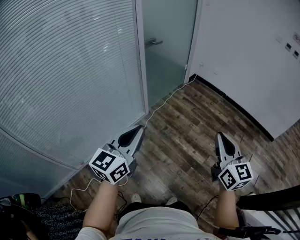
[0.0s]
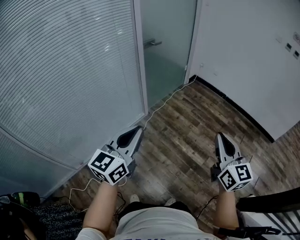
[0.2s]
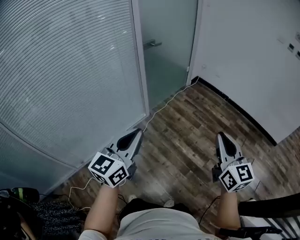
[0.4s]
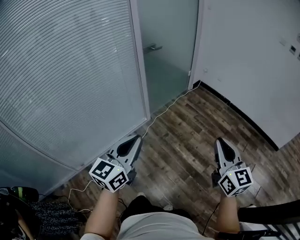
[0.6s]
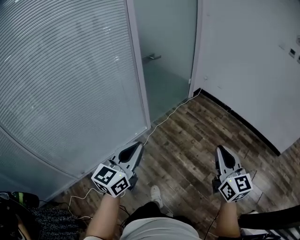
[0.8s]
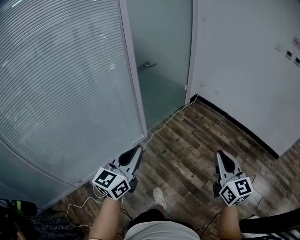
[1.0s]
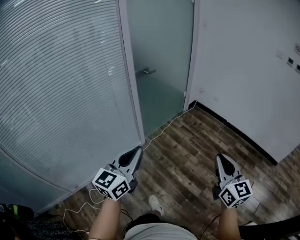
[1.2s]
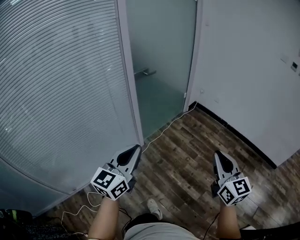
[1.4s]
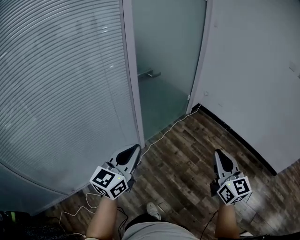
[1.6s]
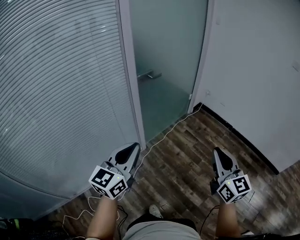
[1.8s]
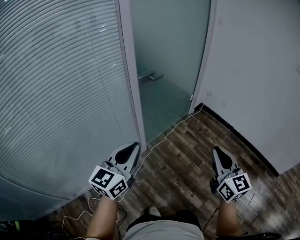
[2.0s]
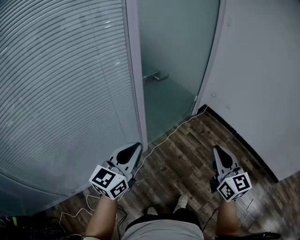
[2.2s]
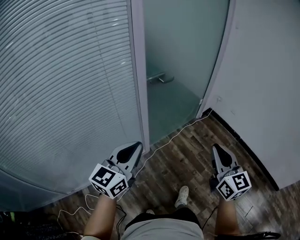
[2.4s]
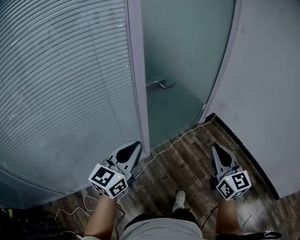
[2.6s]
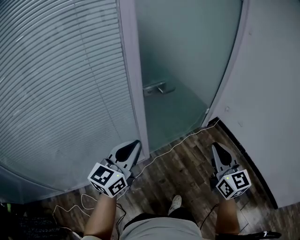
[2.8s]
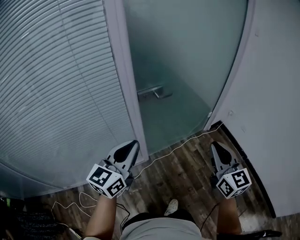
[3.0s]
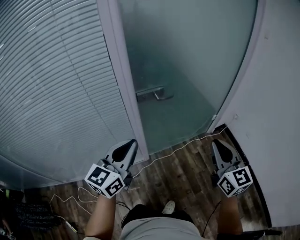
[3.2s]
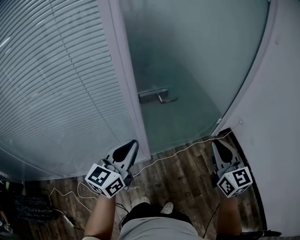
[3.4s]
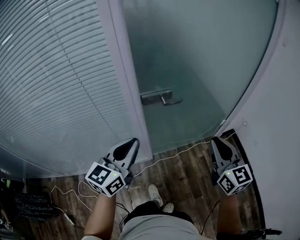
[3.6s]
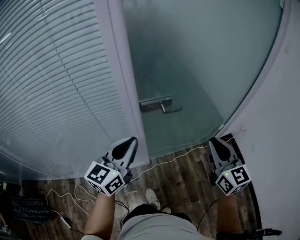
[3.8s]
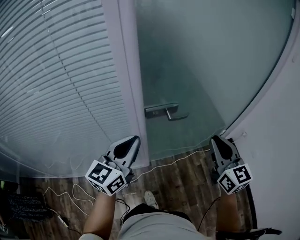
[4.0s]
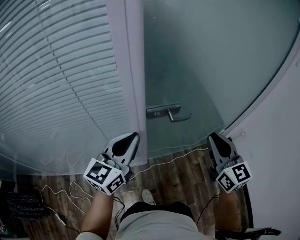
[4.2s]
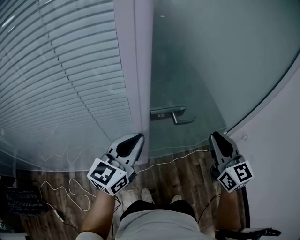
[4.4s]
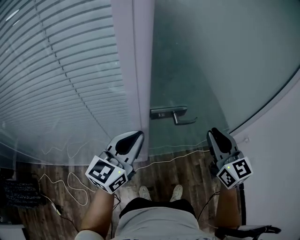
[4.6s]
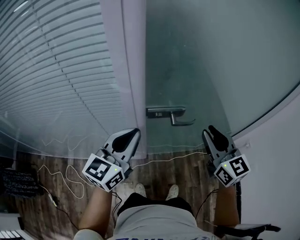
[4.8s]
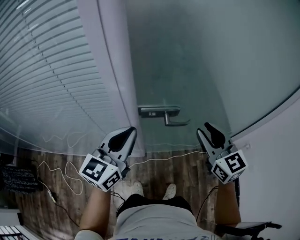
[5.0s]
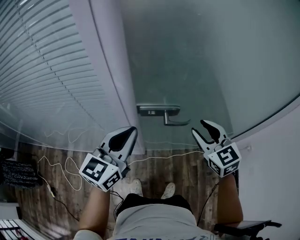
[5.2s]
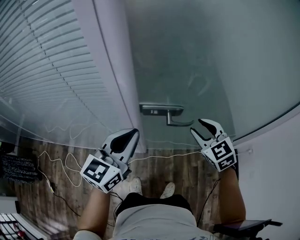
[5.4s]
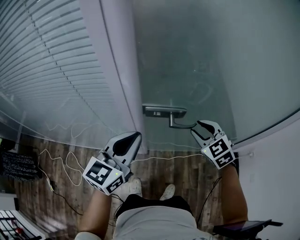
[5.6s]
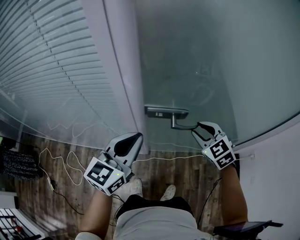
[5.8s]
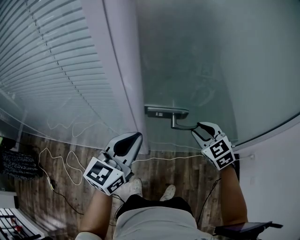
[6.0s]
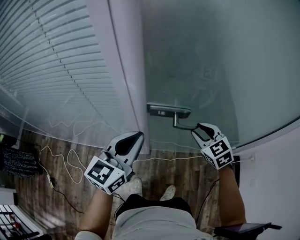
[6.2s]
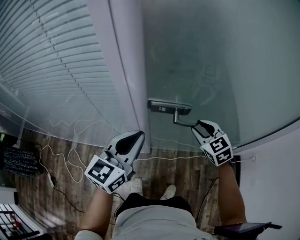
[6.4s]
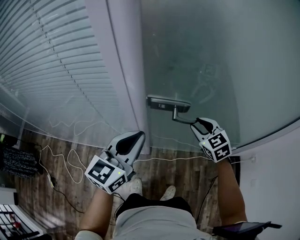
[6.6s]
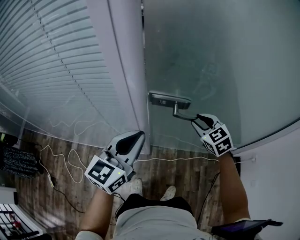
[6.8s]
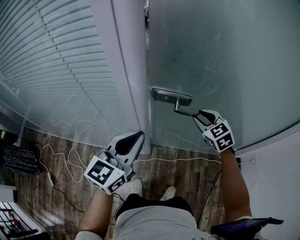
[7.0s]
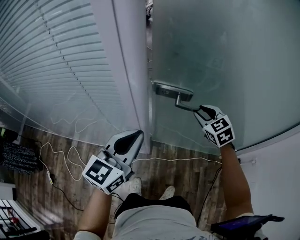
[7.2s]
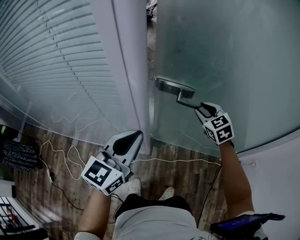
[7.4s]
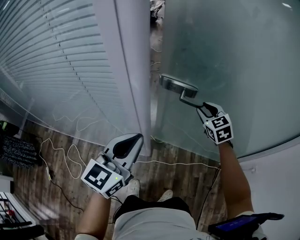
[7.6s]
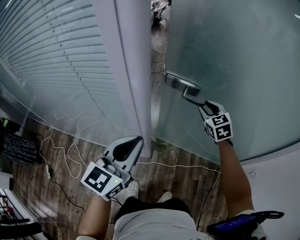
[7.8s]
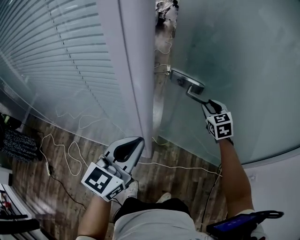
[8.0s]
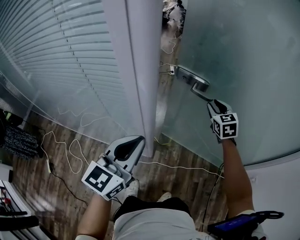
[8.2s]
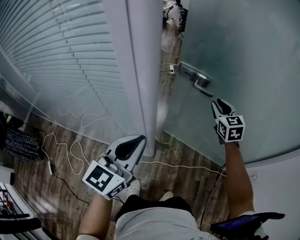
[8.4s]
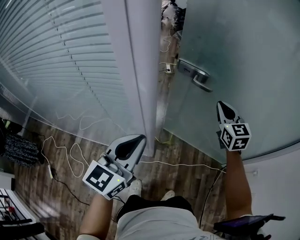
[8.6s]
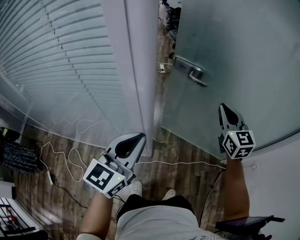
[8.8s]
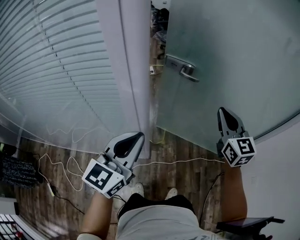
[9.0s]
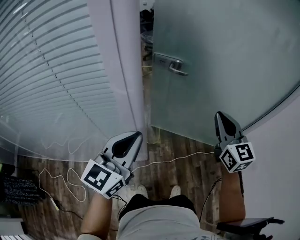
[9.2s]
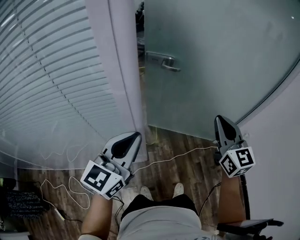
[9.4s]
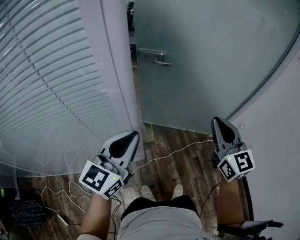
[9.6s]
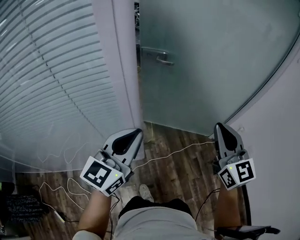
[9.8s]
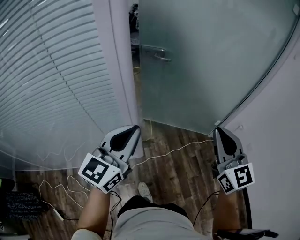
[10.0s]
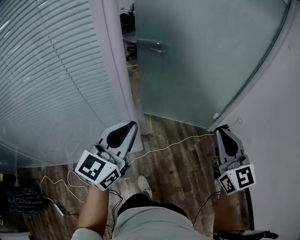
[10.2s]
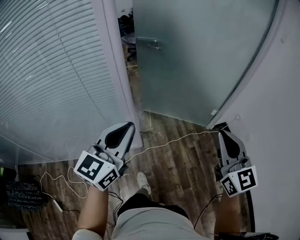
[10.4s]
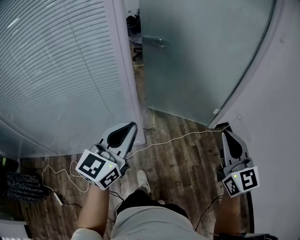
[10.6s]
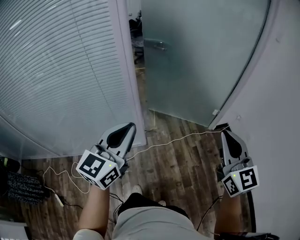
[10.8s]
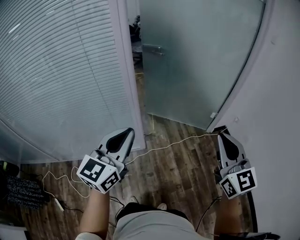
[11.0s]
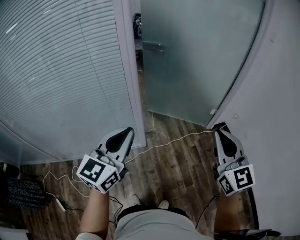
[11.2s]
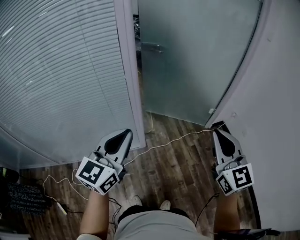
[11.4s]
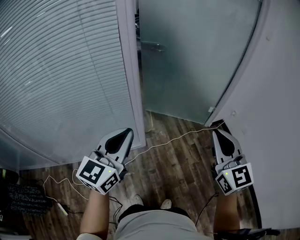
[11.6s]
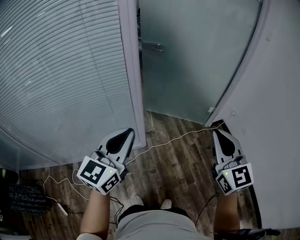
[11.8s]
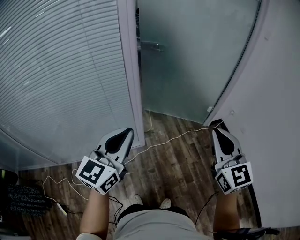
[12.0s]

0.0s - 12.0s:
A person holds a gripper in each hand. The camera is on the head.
0.0s - 1.6s: The two grippers go roughly 25 cm forward.
1.6s - 3.0s: The two grippers go approximately 35 cm forward.
3.0s - 4.4s: The two grippers go roughly 25 cm forward.
4.4s - 6.0s: The right gripper shifts approximately 20 cm downward and forward, tips its fingers downward by about 30 degrees, and opens. Meanwhile the left gripper ends up approximately 5 cm from where it was.
6.0s - 7.6s: The right gripper is displaced forward by some 15 cm.
7.6s - 9.0s: The right gripper is displaced upward, backward and to the right by some 15 cm, changes its angle by some 30 degrees, and closes its fingers.
9.0s - 10.4s: The left gripper travels backward and to the right by approximately 15 cm, while the right gripper heads backward, covering about 30 cm.
10.4s - 12.0s: The grippers both shift backward and to the left by about 15 cm.

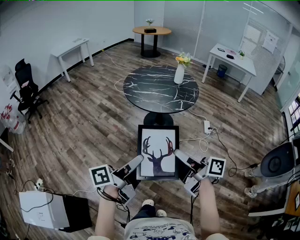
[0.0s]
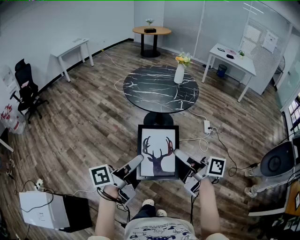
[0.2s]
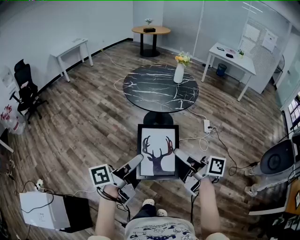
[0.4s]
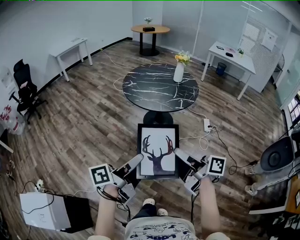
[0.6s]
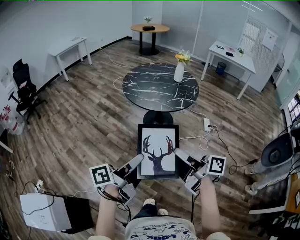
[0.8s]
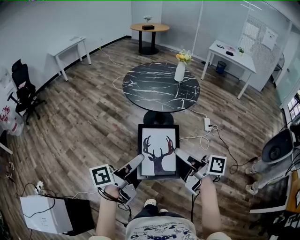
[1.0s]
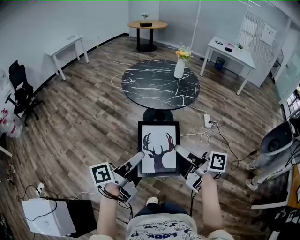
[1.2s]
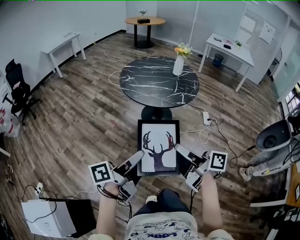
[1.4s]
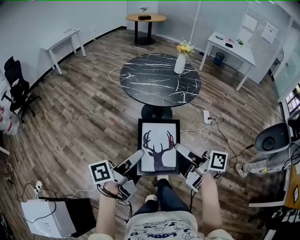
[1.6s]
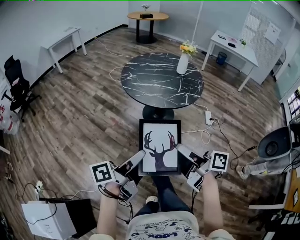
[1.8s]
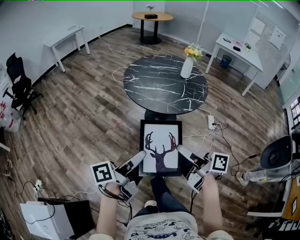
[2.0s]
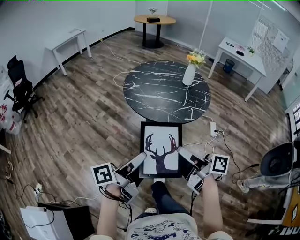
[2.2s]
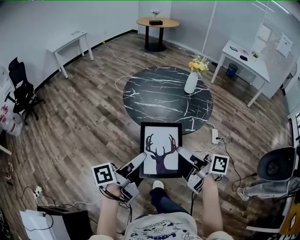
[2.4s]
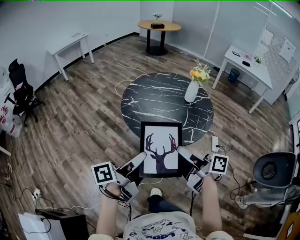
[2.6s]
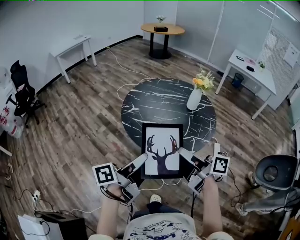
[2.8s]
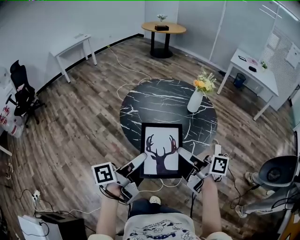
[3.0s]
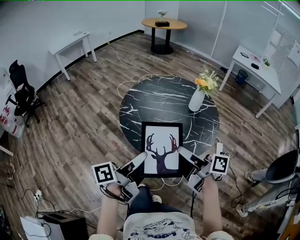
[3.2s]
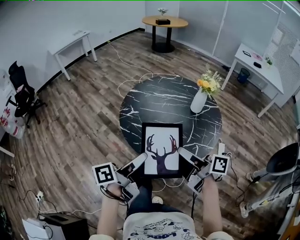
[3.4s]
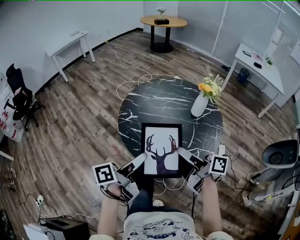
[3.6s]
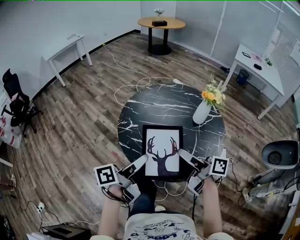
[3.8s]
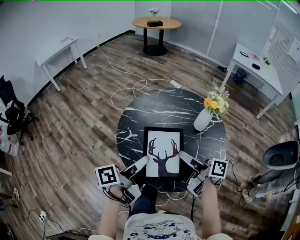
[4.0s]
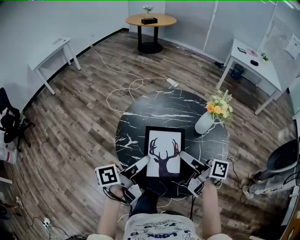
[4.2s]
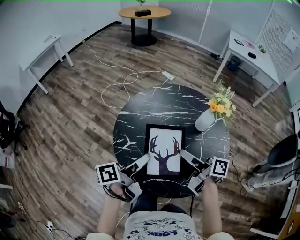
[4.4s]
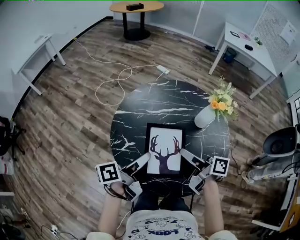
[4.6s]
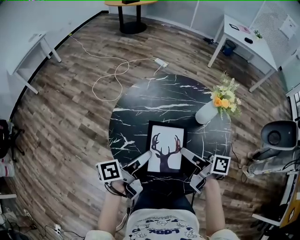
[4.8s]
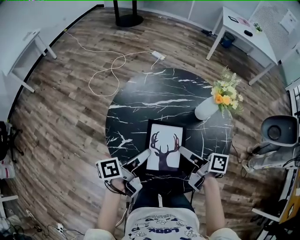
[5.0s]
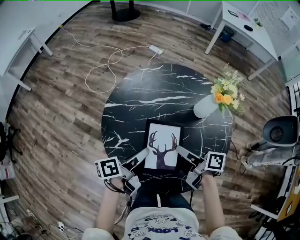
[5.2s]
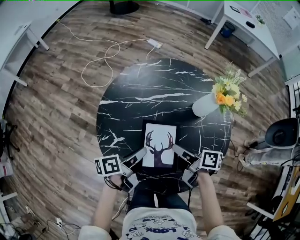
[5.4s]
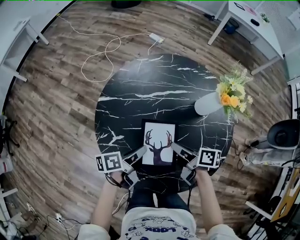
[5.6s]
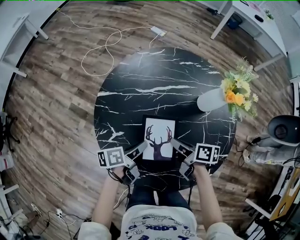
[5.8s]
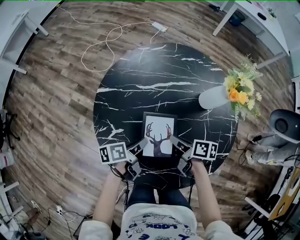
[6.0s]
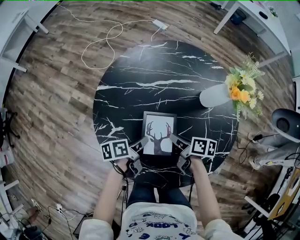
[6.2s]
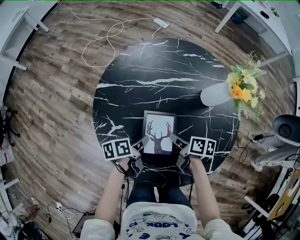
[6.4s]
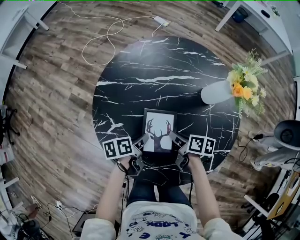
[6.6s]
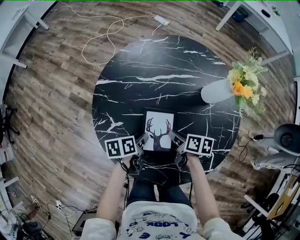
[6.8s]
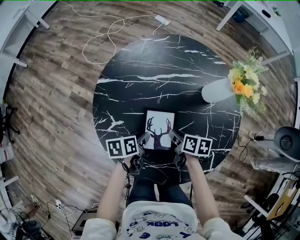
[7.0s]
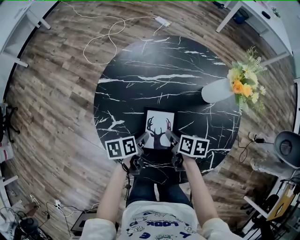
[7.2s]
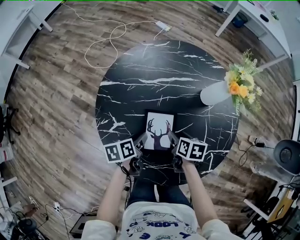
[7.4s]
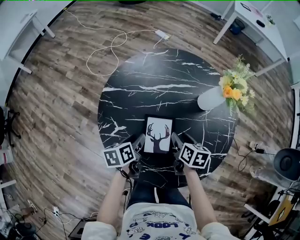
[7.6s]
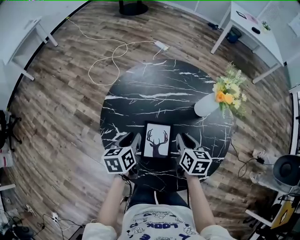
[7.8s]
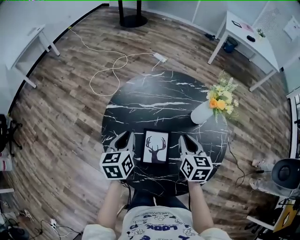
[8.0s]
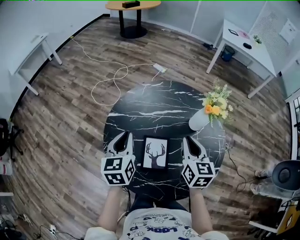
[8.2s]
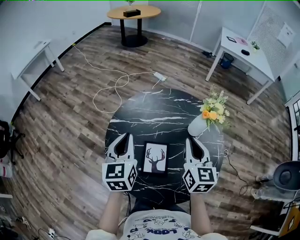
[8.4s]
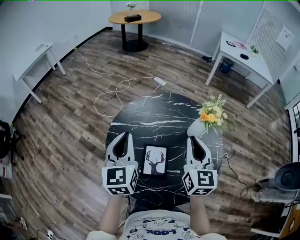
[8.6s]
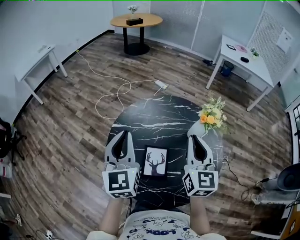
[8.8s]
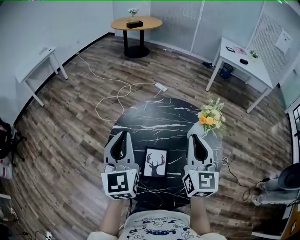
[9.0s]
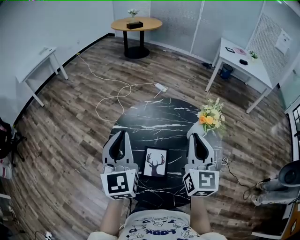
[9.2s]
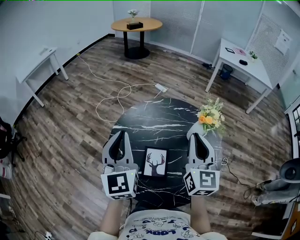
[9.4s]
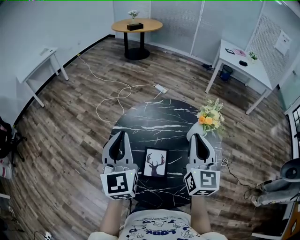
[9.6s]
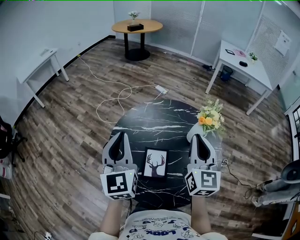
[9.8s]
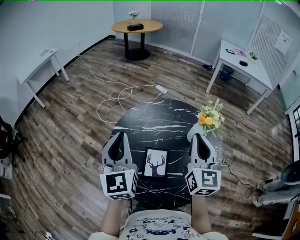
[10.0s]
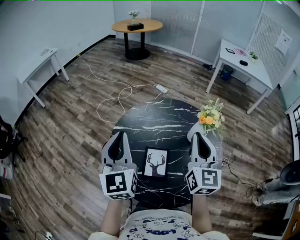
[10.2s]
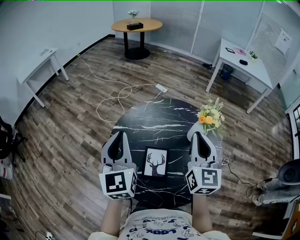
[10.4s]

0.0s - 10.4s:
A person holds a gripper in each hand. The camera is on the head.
0.0s - 1.4s: The left gripper travels forward by about 5 cm. Meanwhile the right gripper changes place by roughly 5 cm.
1.4s - 3.0s: Both grippers are carried forward, approximately 40 cm.
3.0s - 4.4s: Both grippers travel together forward, about 30 cm.
4.4s - 6.0s: Both grippers move downward, approximately 25 cm. The right gripper tilts its fingers roughly 30 degrees downward; the left gripper swivels some 30 degrees.
6.0s - 7.4s: The right gripper rotates roughly 30 degrees, and opens up. Meanwhile the left gripper opens its fingers.
7.4s - 9.0s: The two grippers go roughly 40 cm upward. The right gripper points its fingers about 60 degrees further upward, and closes up. The left gripper points its fingers about 40 degrees further upward, and closes its fingers.
9.0s - 10.4s: There are only small adjustments of the grippers.

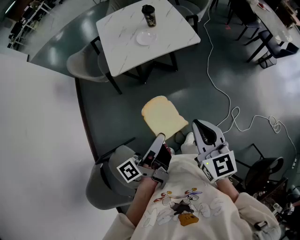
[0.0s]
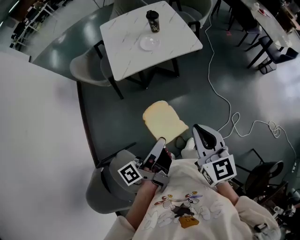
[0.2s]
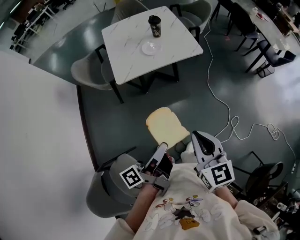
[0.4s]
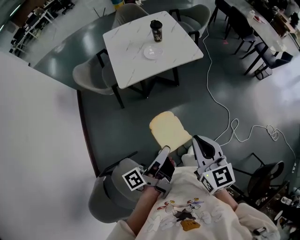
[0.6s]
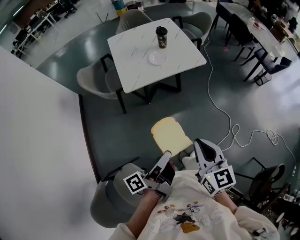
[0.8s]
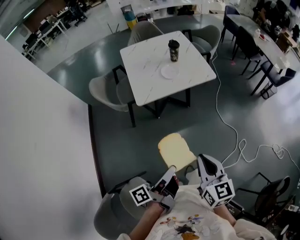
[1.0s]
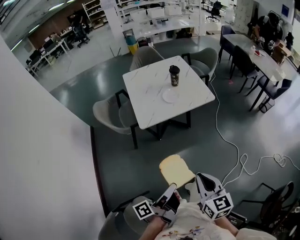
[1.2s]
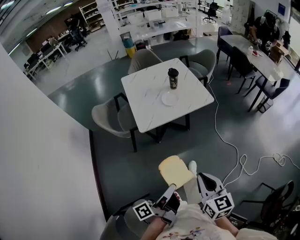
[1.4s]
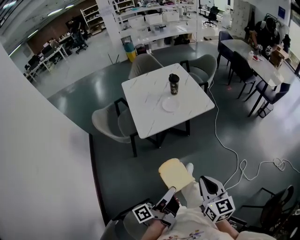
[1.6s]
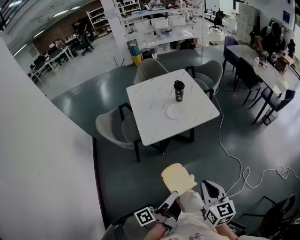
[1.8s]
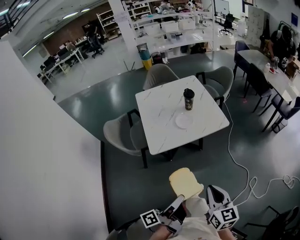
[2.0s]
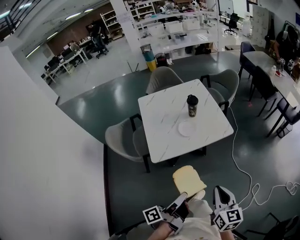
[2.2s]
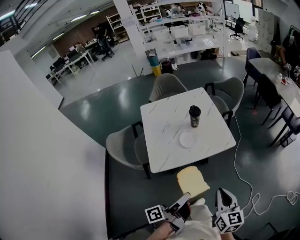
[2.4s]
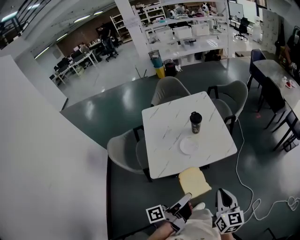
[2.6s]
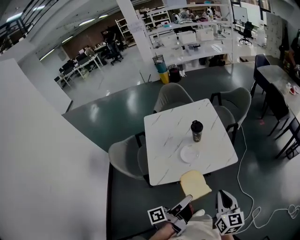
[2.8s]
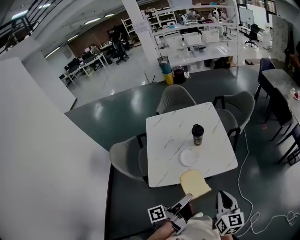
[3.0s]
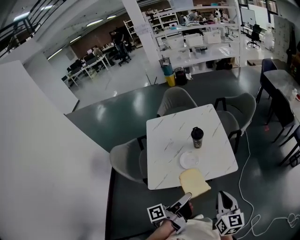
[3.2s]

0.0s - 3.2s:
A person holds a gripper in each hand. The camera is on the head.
0.0s - 1.6s: The right gripper ends up approximately 10 cm from where it was.
1.6s - 3.2s: The right gripper moves about 35 cm.
